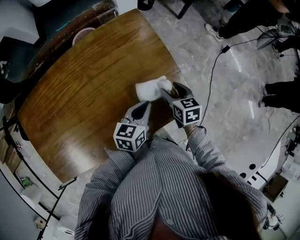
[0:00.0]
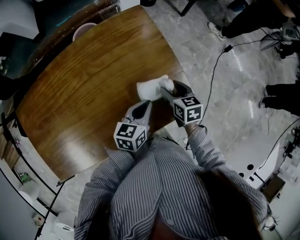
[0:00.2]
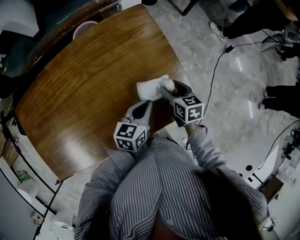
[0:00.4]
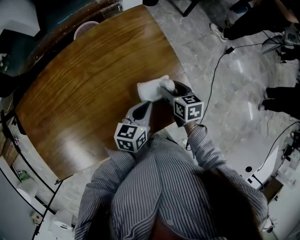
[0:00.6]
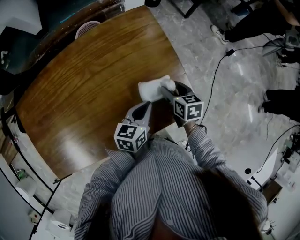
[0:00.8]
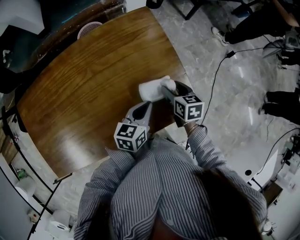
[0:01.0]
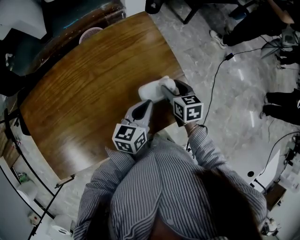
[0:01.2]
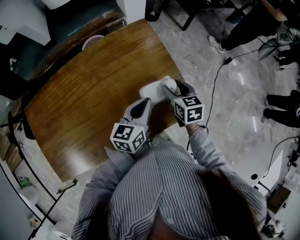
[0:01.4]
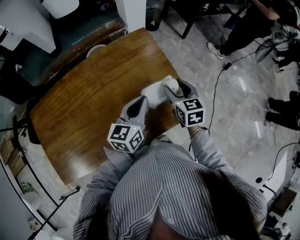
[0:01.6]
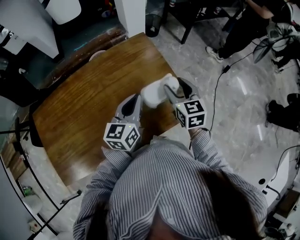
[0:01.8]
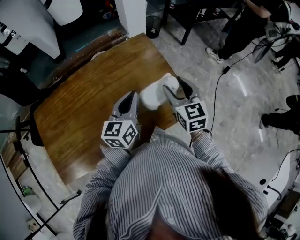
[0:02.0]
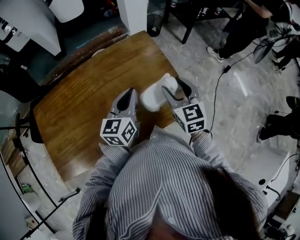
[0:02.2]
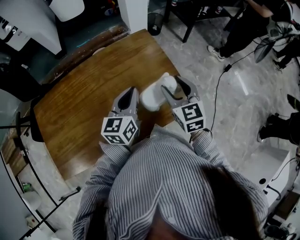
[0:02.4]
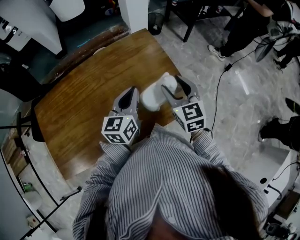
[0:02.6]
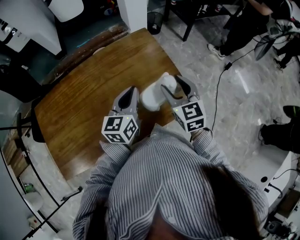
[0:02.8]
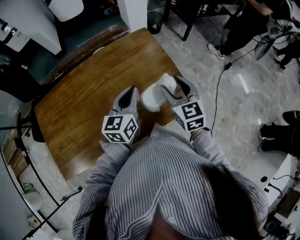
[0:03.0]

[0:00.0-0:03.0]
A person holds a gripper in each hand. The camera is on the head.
0:00.0 to 0:01.6: The grippers both shift upward by about 10 cm.
0:01.6 to 0:03.0: The left gripper shifts by some 5 cm. The right gripper travels upward and backward by approximately 10 cm.

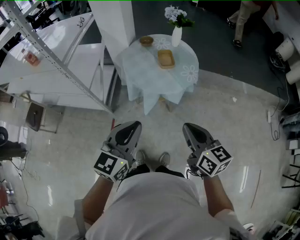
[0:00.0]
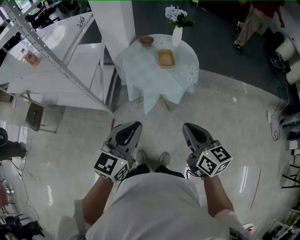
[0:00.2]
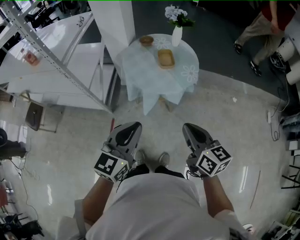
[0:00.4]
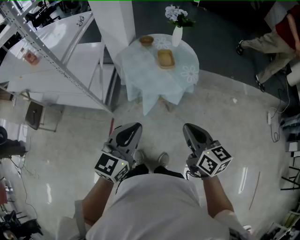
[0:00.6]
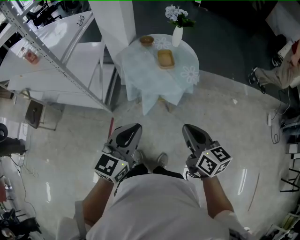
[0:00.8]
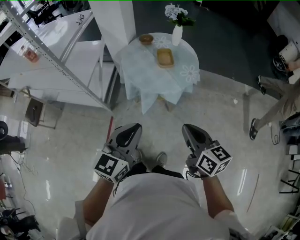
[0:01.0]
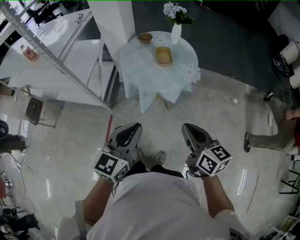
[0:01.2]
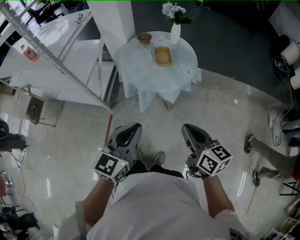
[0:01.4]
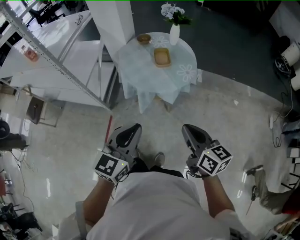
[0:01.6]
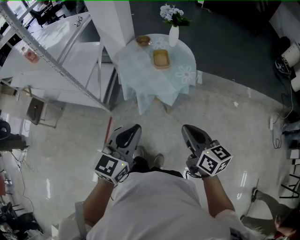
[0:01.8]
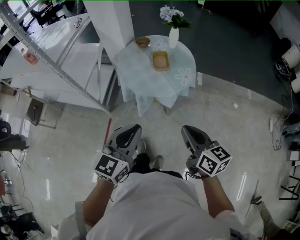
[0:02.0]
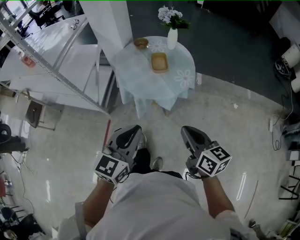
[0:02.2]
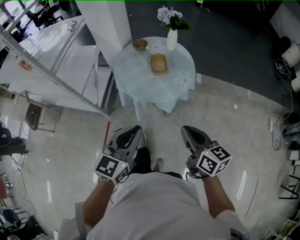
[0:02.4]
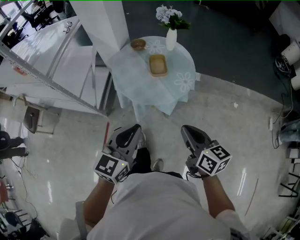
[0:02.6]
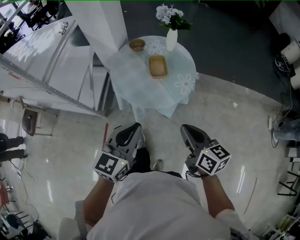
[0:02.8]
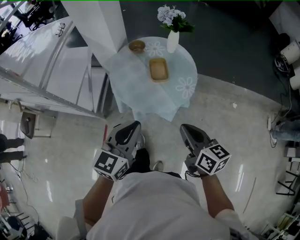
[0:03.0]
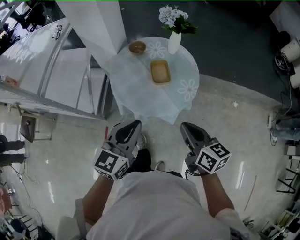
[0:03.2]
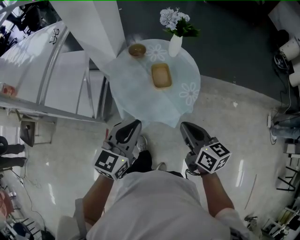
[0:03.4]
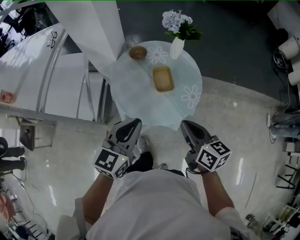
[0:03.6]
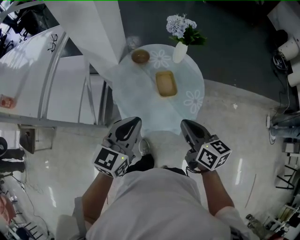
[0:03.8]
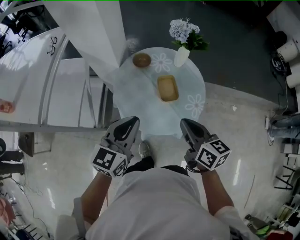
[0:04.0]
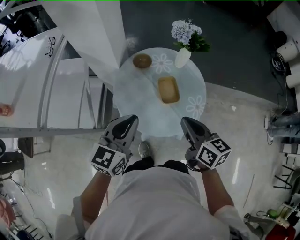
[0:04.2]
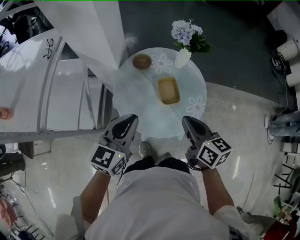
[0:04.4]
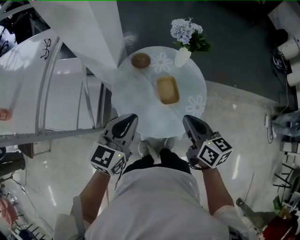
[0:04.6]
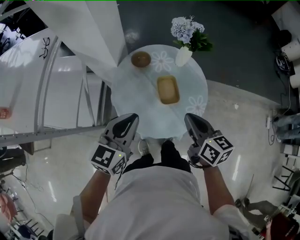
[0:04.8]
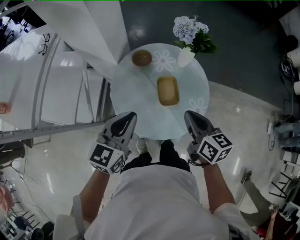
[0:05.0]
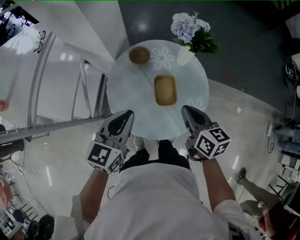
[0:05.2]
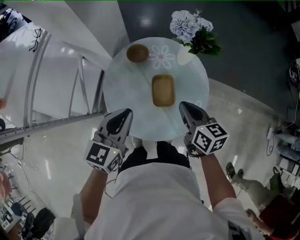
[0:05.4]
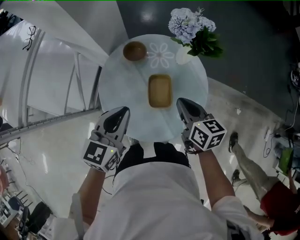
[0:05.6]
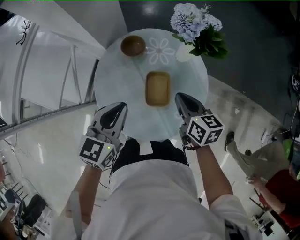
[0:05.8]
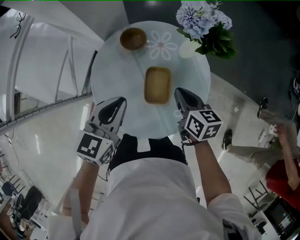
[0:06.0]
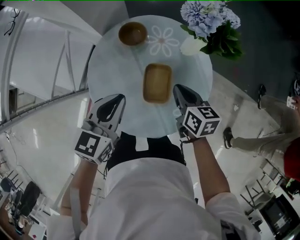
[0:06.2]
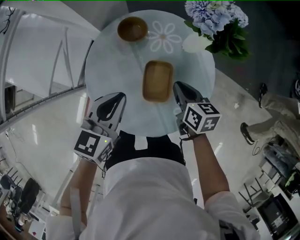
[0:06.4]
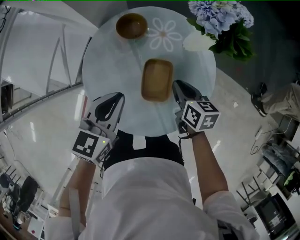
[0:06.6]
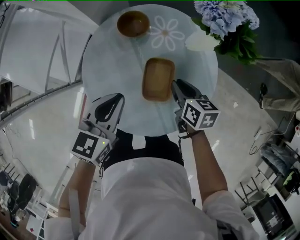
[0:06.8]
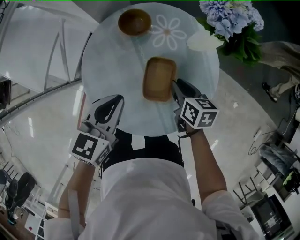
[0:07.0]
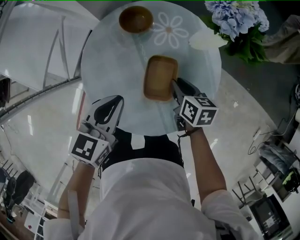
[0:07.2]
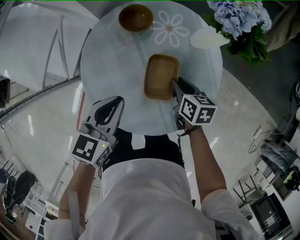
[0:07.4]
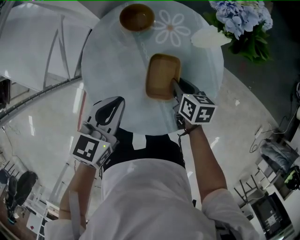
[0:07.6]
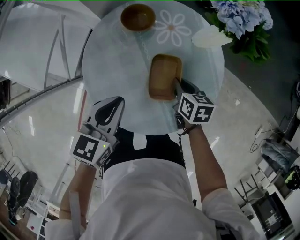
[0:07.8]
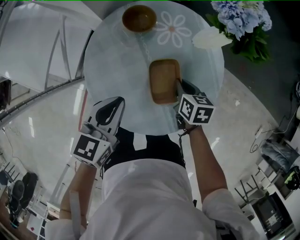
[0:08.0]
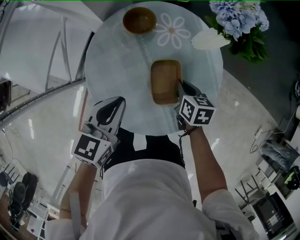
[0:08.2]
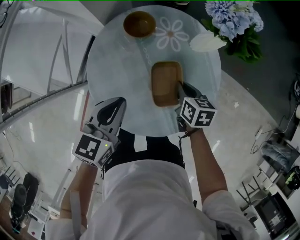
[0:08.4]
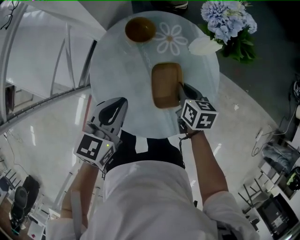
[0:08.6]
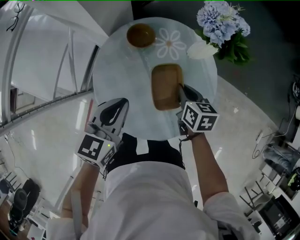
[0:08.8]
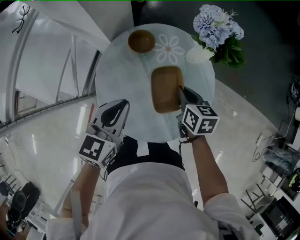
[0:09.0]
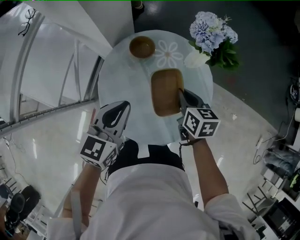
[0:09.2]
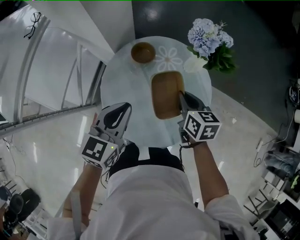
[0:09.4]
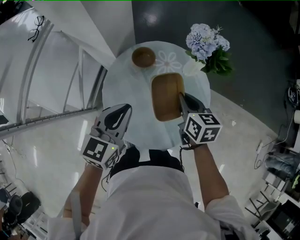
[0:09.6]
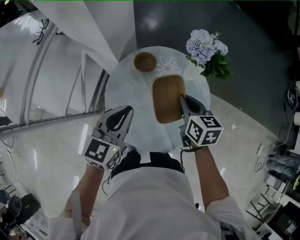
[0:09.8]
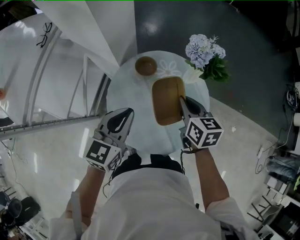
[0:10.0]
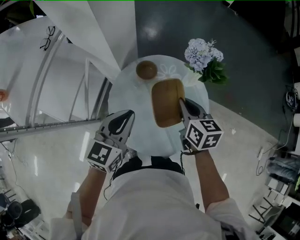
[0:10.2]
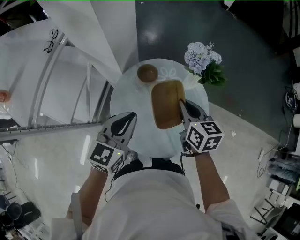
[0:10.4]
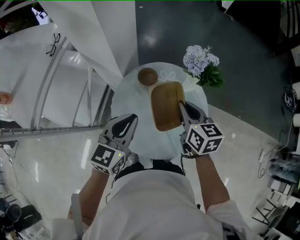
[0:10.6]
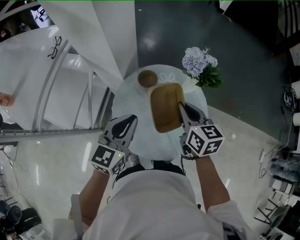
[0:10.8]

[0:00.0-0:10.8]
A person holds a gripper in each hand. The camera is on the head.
0:00.0 to 0:01.6: The two grippers go roughly 5 cm to the right.
0:01.6 to 0:03.0: The grippers both shift forward by approximately 15 cm.
0:03.0 to 0:04.6: The right gripper moves forward, some 20 cm; the left gripper moves forward and to the left, approximately 20 cm.
0:04.6 to 0:06.2: The right gripper moves downward and forward, about 25 cm, and swivels some 20 degrees. The left gripper goes approximately 15 cm downward, forward and to the right, and changes its angle by some 20 degrees.
0:06.2 to 0:07.8: The left gripper is displaced downward by some 5 cm, while the right gripper is displaced downward by some 10 cm.
0:07.8 to 0:09.2: The right gripper heads upward, covering approximately 15 cm. Meanwhile the left gripper is displaced upward by about 10 cm.
0:09.2 to 0:10.8: The right gripper moves upward, roughly 15 cm. Meanwhile the left gripper goes approximately 10 cm upward.

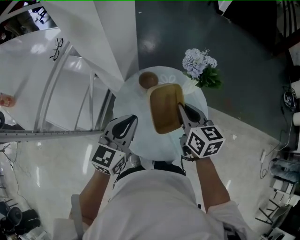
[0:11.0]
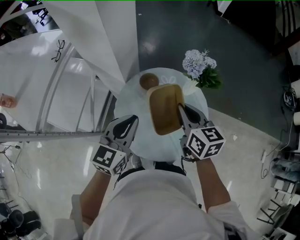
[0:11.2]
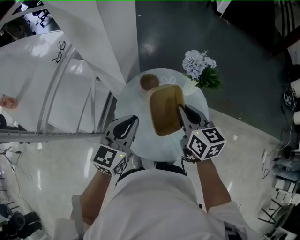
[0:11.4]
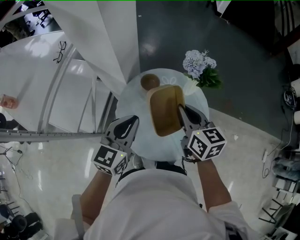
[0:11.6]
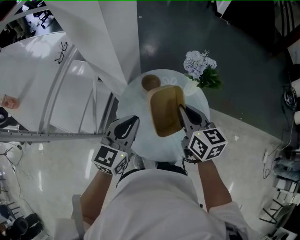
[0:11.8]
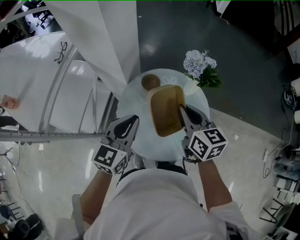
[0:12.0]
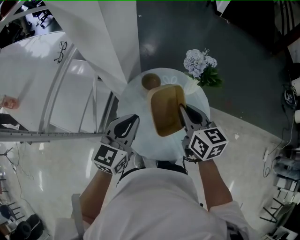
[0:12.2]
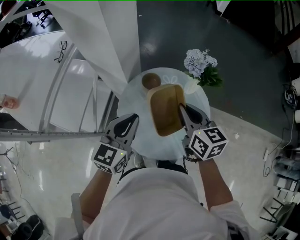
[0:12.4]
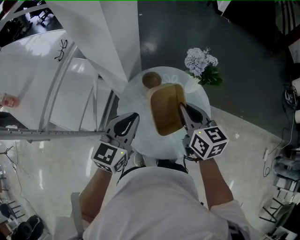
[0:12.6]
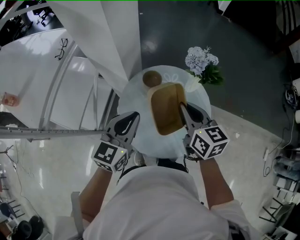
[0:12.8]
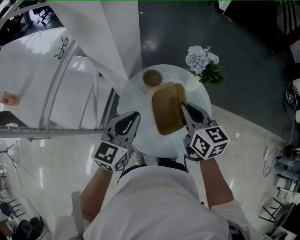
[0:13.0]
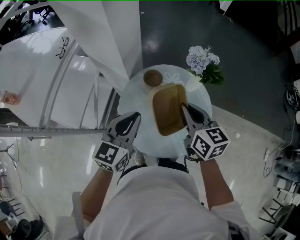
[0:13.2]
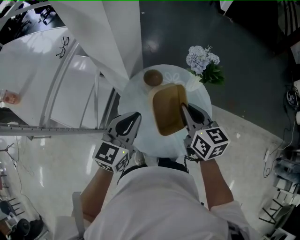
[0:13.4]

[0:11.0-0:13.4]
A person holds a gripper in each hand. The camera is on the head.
0:11.0 to 0:12.2: There are only small adjustments of the grippers.
0:12.2 to 0:13.4: Both grippers stay about where they are.

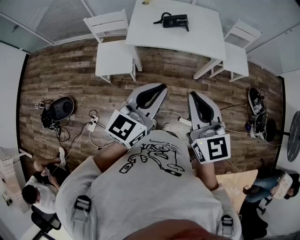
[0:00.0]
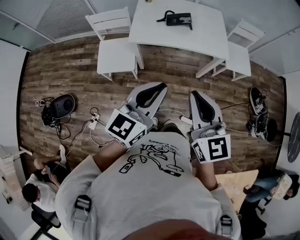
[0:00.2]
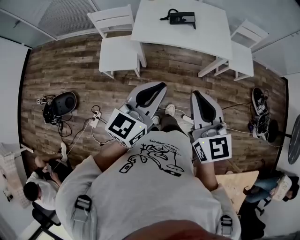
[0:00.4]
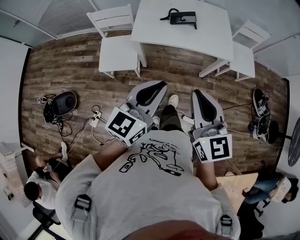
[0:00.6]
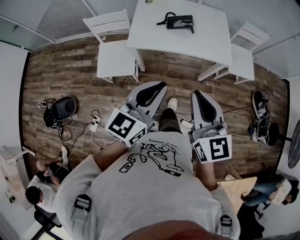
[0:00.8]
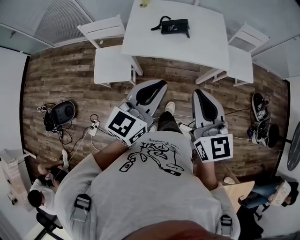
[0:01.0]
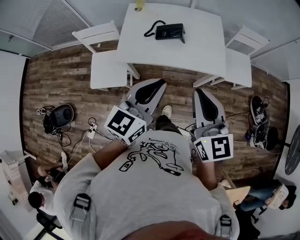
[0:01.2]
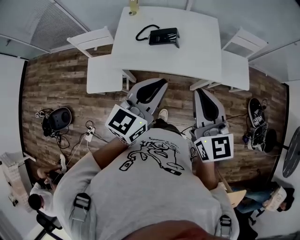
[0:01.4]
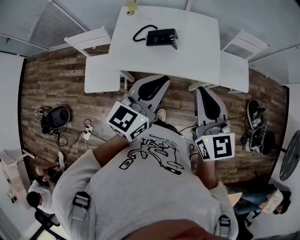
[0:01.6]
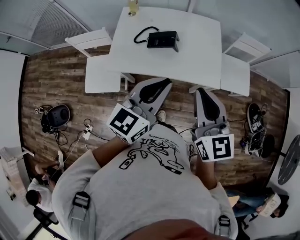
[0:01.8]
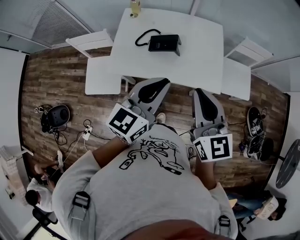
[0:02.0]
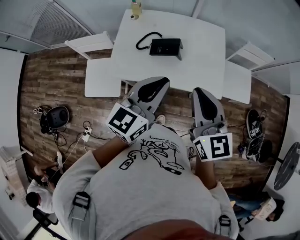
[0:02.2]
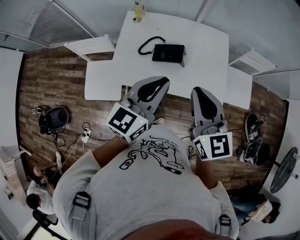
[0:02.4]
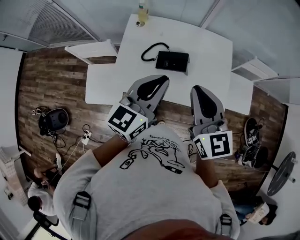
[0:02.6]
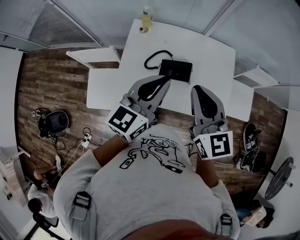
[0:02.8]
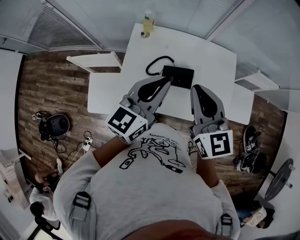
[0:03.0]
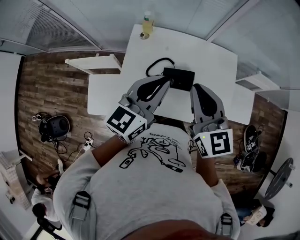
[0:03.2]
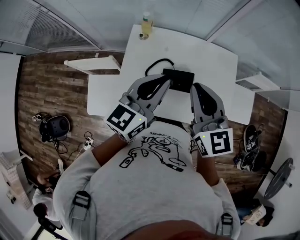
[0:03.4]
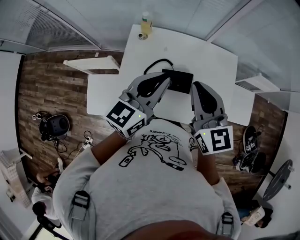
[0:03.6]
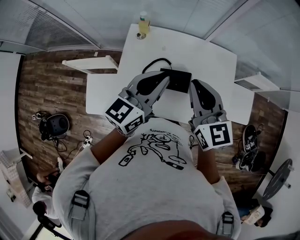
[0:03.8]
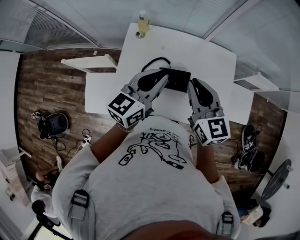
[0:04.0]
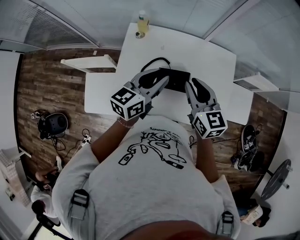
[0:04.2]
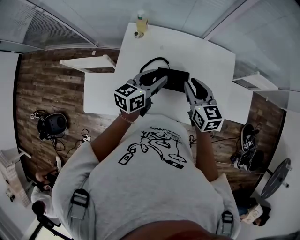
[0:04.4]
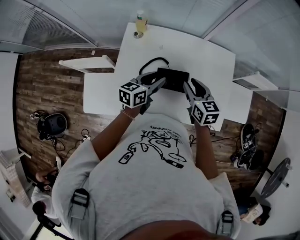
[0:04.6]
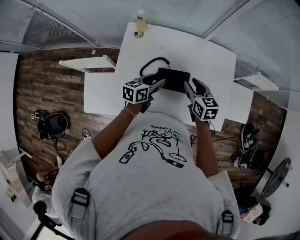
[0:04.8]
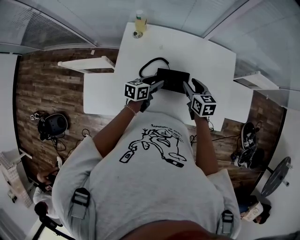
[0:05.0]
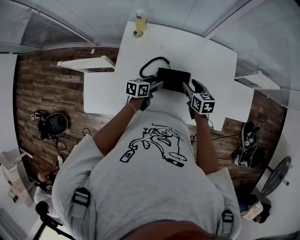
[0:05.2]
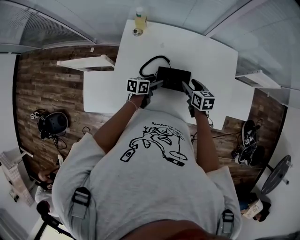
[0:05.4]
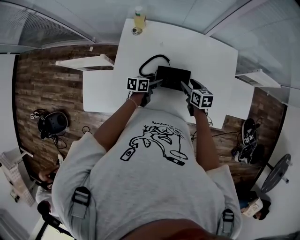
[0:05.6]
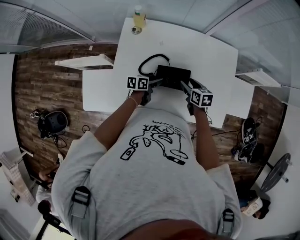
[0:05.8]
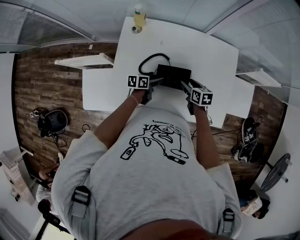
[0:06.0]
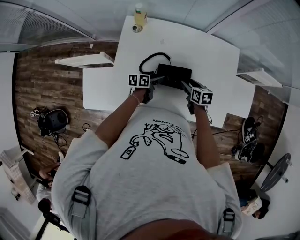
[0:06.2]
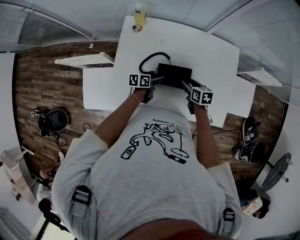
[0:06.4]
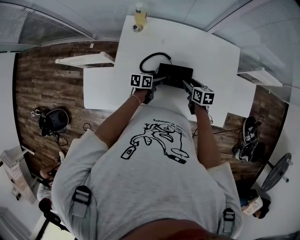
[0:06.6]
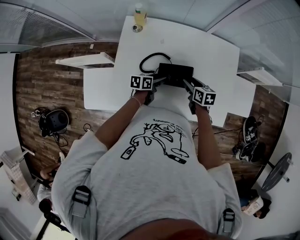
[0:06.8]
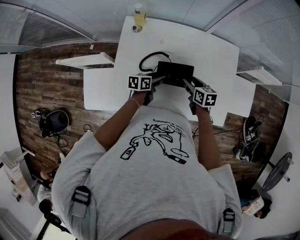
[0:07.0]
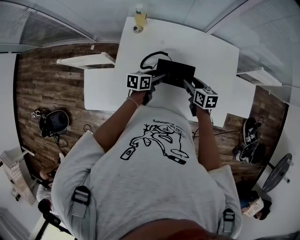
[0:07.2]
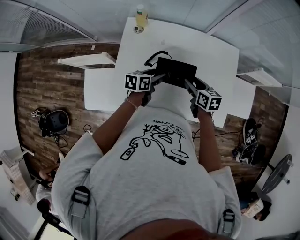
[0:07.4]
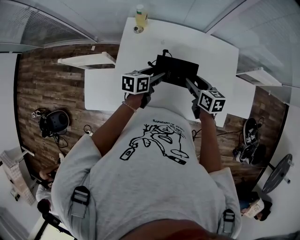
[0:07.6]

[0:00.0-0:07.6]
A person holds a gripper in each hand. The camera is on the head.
0:00.0 to 0:01.6: The right gripper is displaced forward and to the right by roughly 30 cm; the left gripper is displaced forward by some 30 cm.
0:01.6 to 0:03.0: Both grippers travel together forward and to the left, approximately 30 cm.
0:03.0 to 0:04.6: Both grippers travel together downward and forward, roughly 25 cm. The left gripper swivels roughly 30 degrees, and opens its fingers, while the right gripper changes its angle by approximately 30 degrees, and opens up.
0:04.6 to 0:06.0: The grippers both shift downward by roughly 20 cm. The left gripper swivels approximately 30 degrees, and opens its fingers. The right gripper turns by some 20 degrees, and opens up.
0:06.0 to 0:07.6: The grippers both shift upward by approximately 15 cm.
